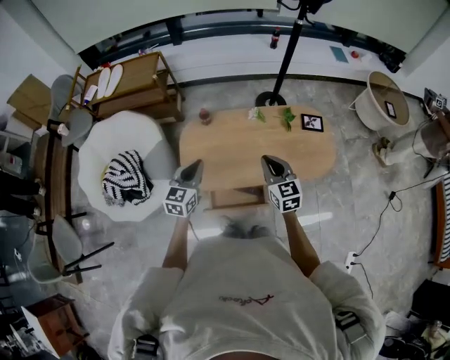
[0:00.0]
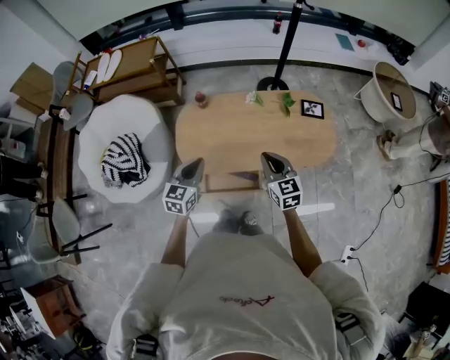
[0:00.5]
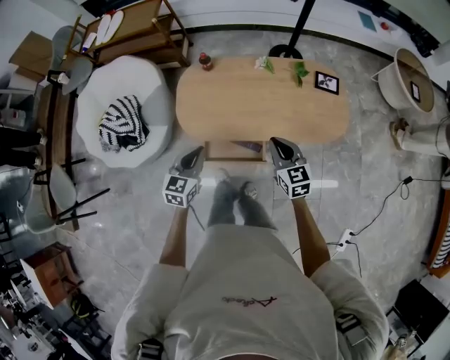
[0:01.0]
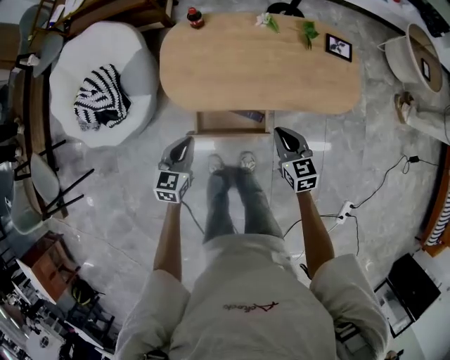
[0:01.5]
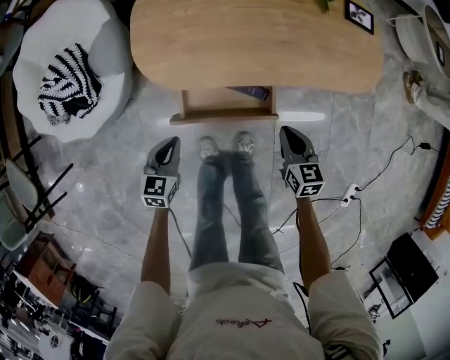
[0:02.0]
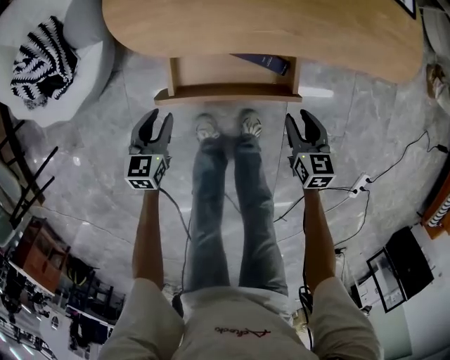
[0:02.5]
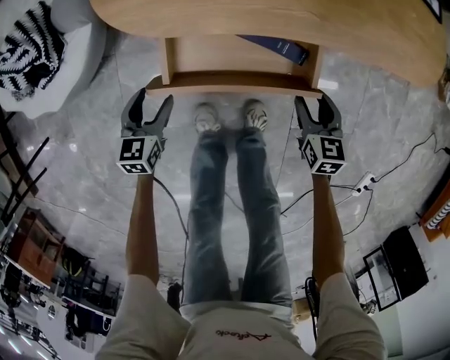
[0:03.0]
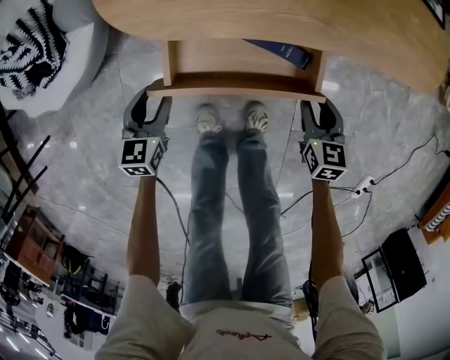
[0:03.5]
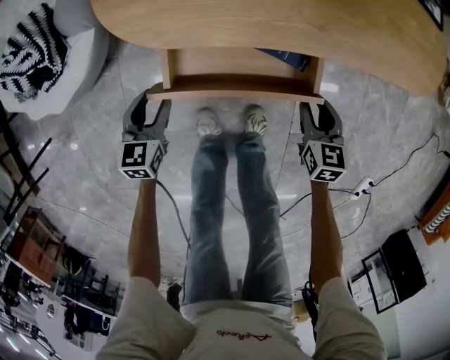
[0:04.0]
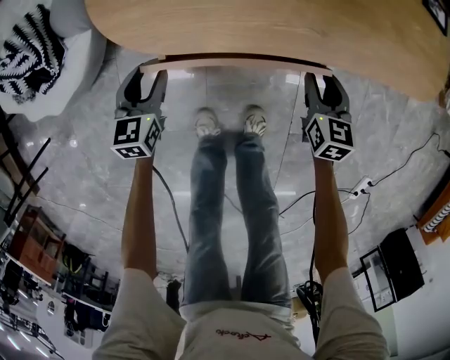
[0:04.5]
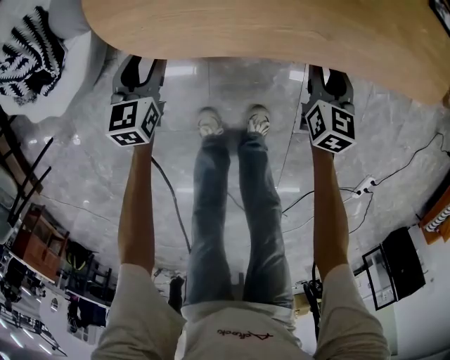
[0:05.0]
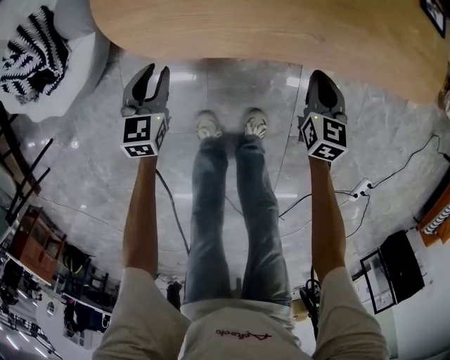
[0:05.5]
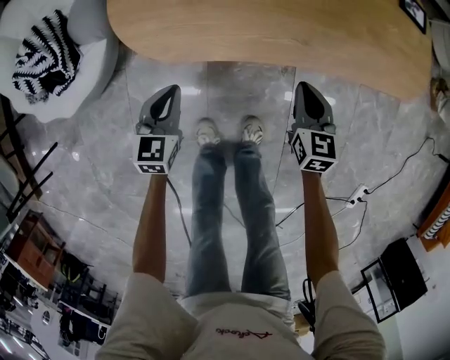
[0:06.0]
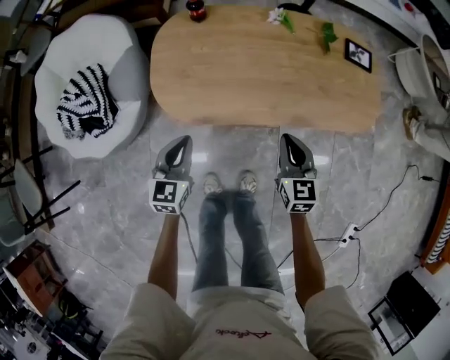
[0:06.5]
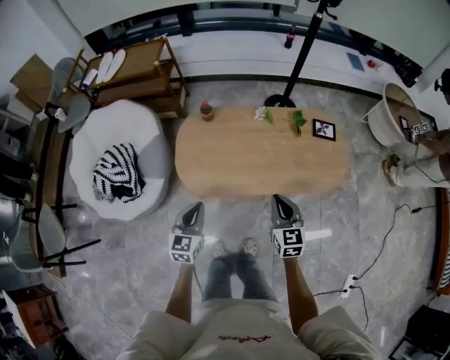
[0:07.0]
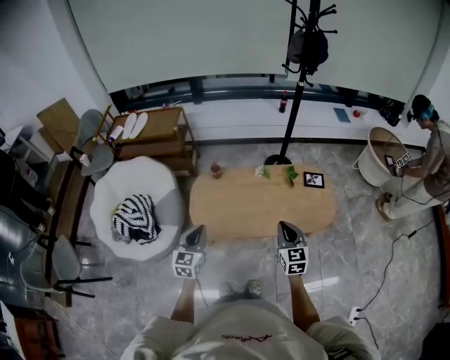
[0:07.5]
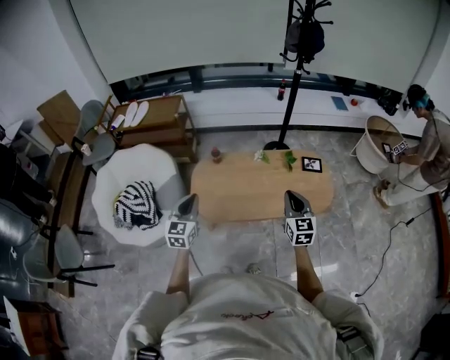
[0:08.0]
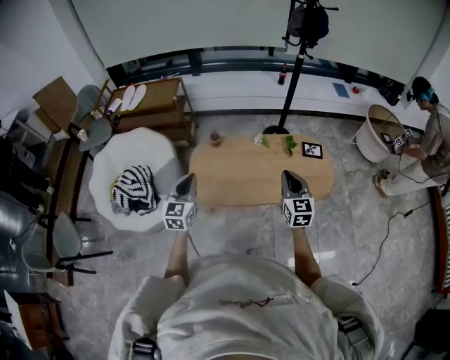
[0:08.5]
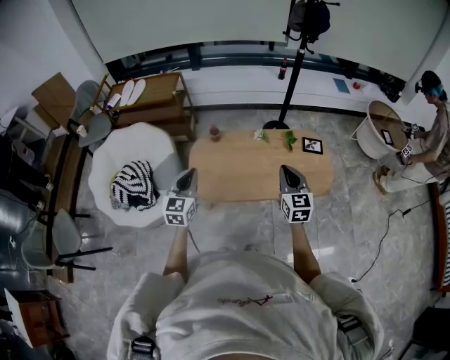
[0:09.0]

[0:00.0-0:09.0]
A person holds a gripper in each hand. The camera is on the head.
0:00.0 to 0:02.0: The right gripper shifts roughly 40 cm downward, and swivels some 20 degrees. Meanwhile the left gripper heads downward and backward, covering approximately 50 cm, and turns by approximately 20 degrees.
0:02.0 to 0:04.5: Both grippers travel together downward and forward, roughly 25 cm. The left gripper opens its fingers; the right gripper opens up.
0:04.5 to 0:07.0: Both grippers move upward, roughly 50 cm. The right gripper rotates some 20 degrees, and closes its fingers; the left gripper closes up.
0:07.0 to 0:09.0: Both grippers move upward, about 20 cm.

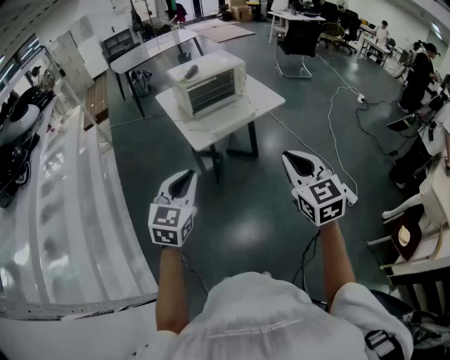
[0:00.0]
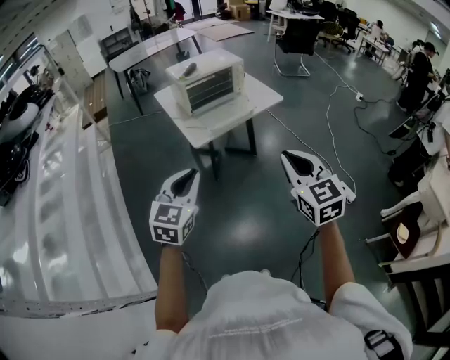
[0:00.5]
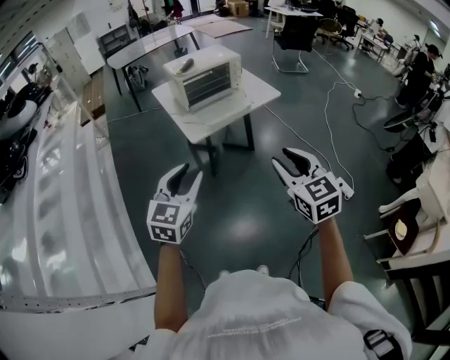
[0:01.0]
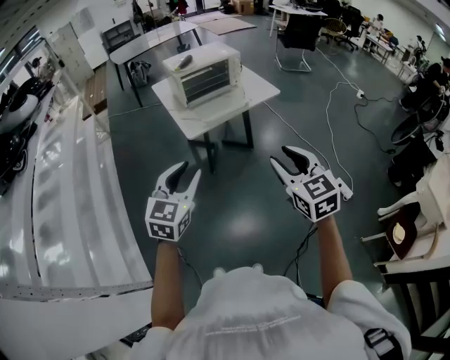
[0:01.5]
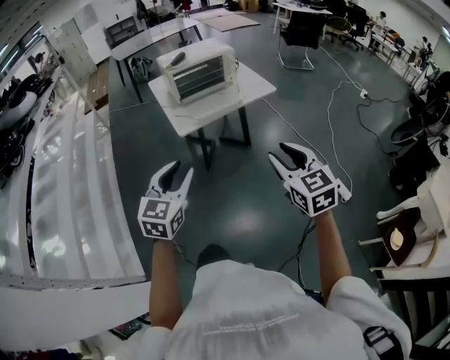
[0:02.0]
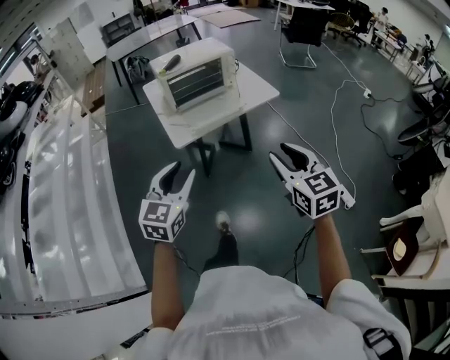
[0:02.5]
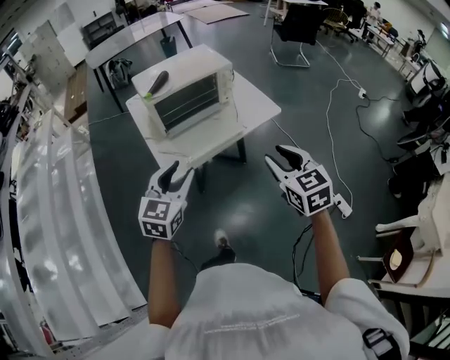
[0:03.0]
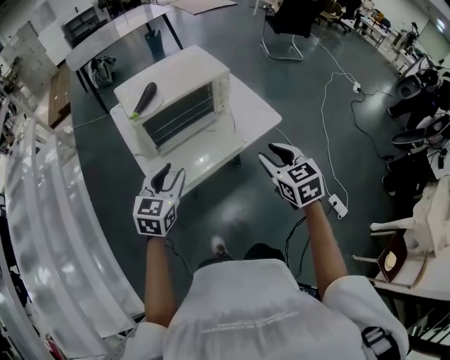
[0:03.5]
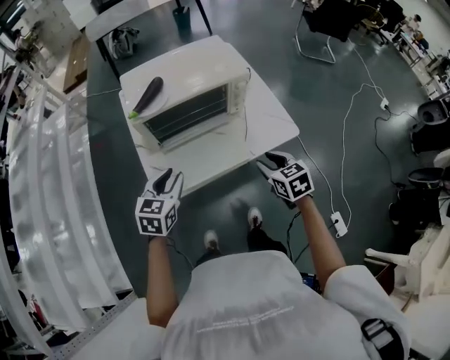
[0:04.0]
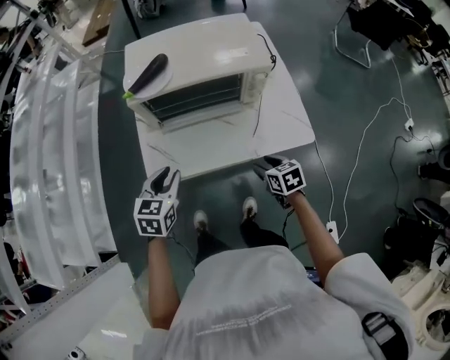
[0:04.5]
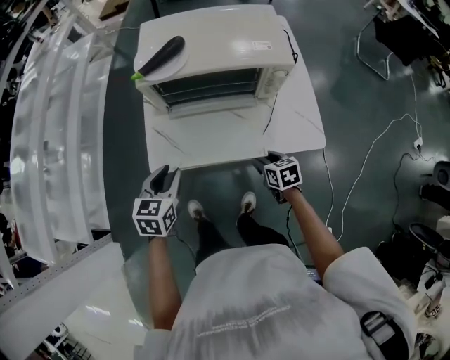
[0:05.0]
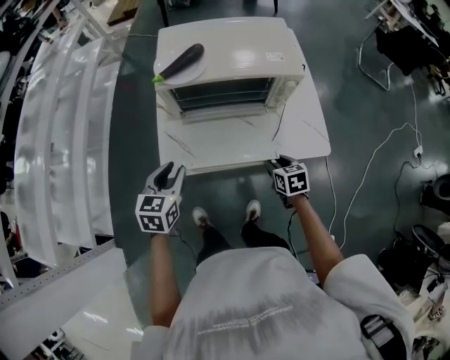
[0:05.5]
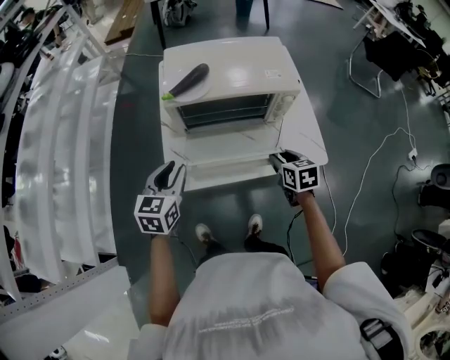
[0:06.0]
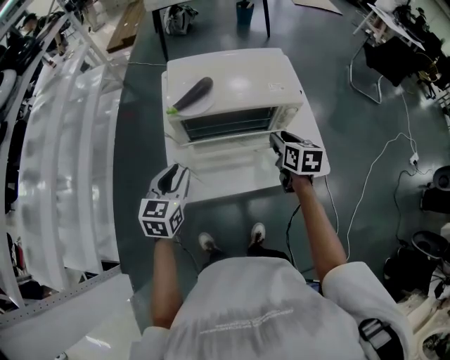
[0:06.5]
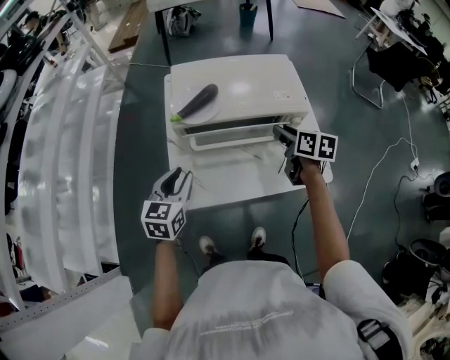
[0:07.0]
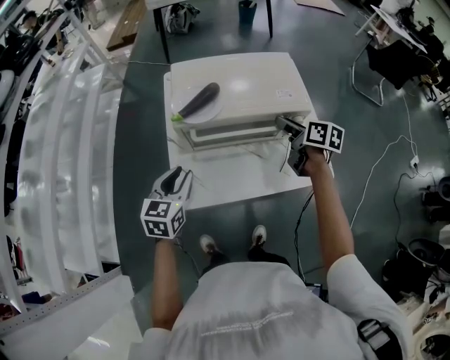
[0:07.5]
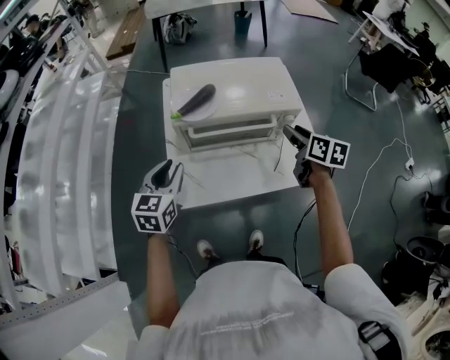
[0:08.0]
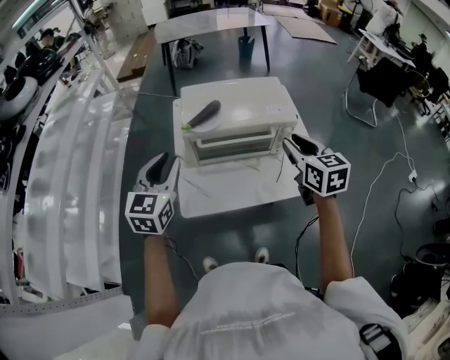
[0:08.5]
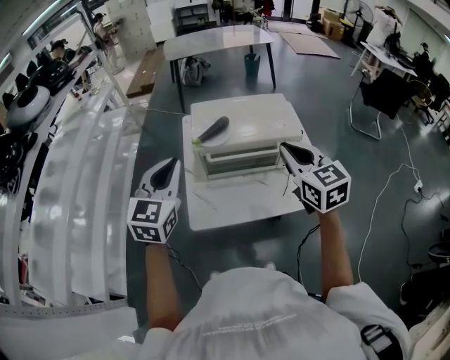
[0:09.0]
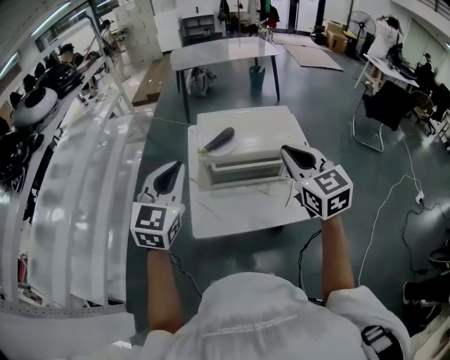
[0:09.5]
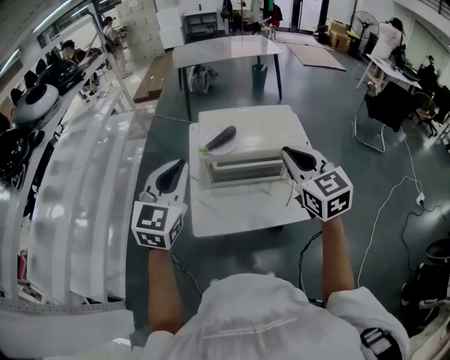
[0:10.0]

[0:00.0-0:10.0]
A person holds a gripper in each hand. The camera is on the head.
0:00.0 to 0:02.0: The grippers both shift to the right by roughly 10 cm. The right gripper opens its fingers, while the left gripper opens up.
0:02.0 to 0:04.0: The two grippers travel together, forward, some 50 cm. The right gripper changes its angle by about 30 degrees, while the left gripper swivels roughly 20 degrees.
0:04.0 to 0:06.0: The right gripper is displaced forward by some 10 cm, and travels downward and back again, some 15 cm each way, while the left gripper changes place by some 5 cm.
0:06.0 to 0:08.0: The right gripper goes some 15 cm upward and forward, and turns by about 20 degrees; the left gripper ends up about 5 cm from where it was.
0:08.0 to 0:10.0: The right gripper moves upward, to the left and backward, roughly 25 cm, rotates around the line of its fingers by approximately 40 degrees, counterclockwise from behind, and closes up; the left gripper travels upward by roughly 20 cm, changes its angle by some 30 degrees, and closes up.

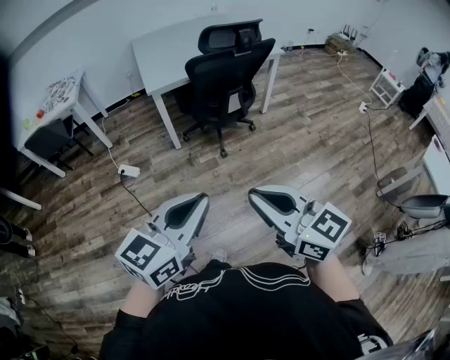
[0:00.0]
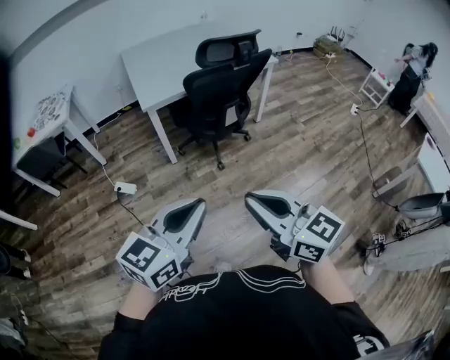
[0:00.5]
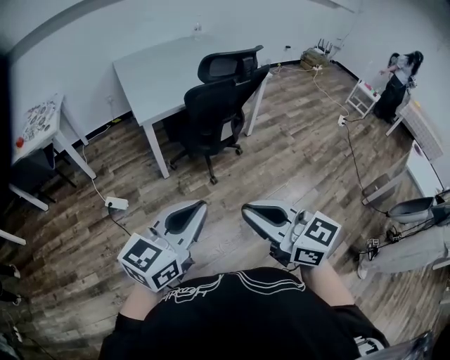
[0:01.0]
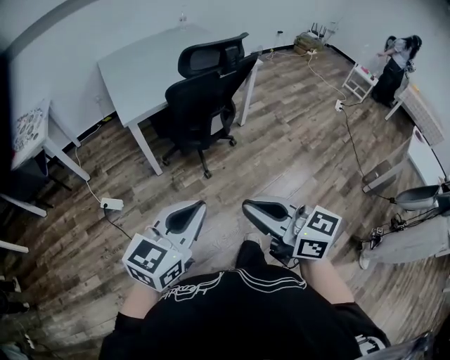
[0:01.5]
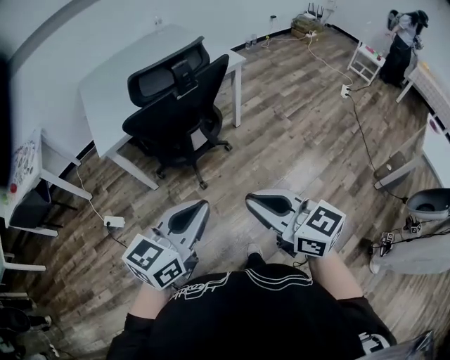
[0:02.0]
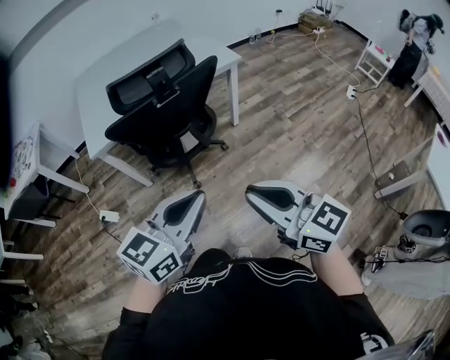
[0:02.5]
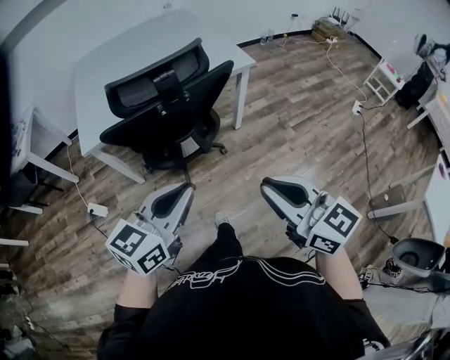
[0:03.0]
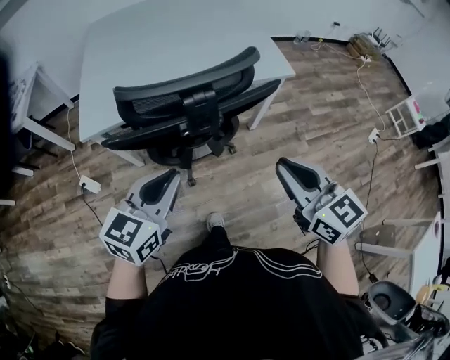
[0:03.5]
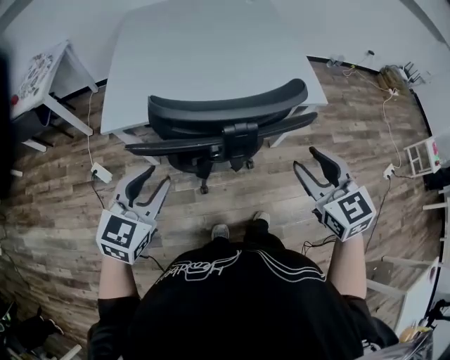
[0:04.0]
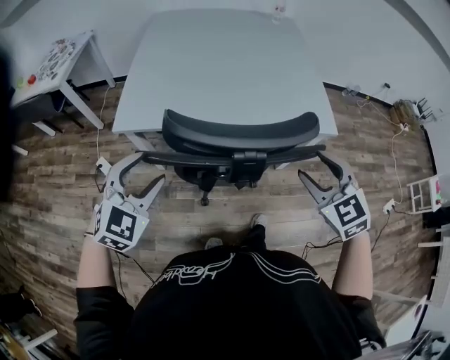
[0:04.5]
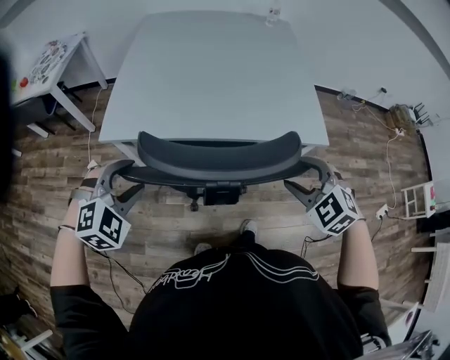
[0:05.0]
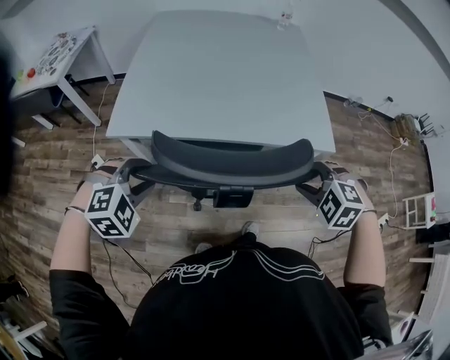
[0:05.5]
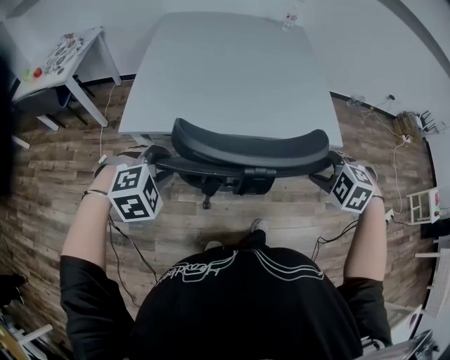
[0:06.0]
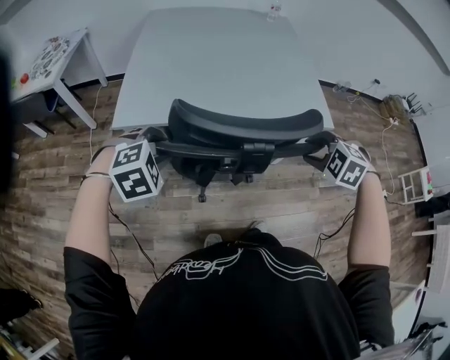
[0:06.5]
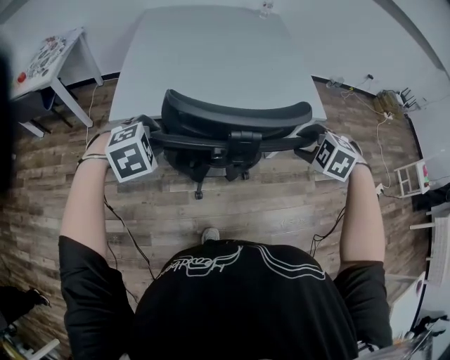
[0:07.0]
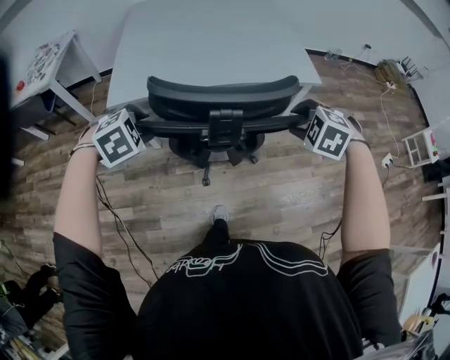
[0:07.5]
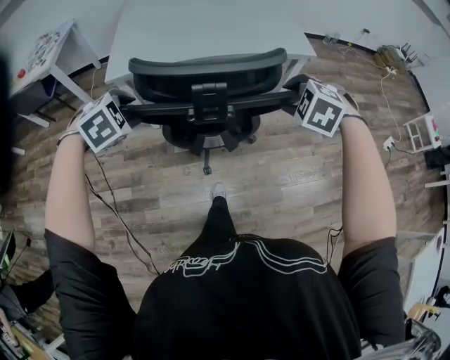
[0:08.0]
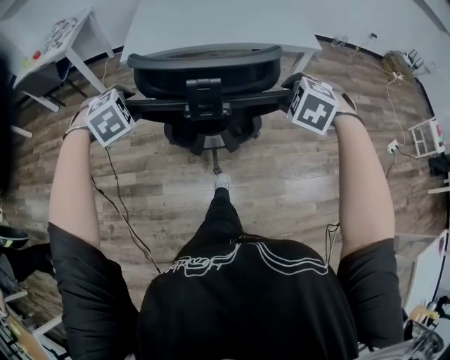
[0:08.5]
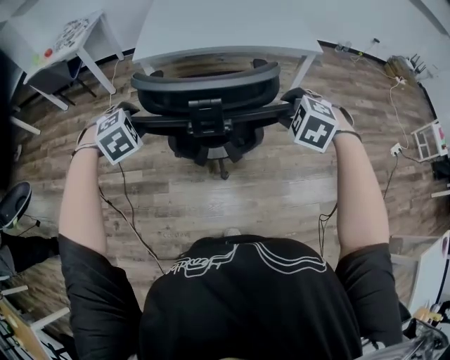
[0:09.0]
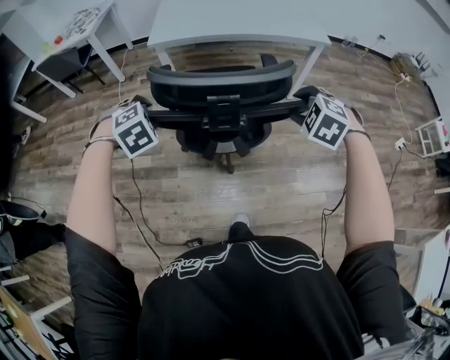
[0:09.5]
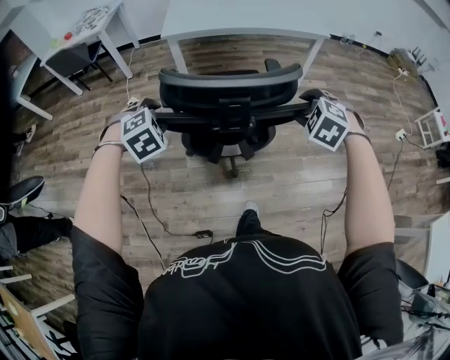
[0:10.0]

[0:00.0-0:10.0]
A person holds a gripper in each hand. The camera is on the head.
0:00.0 to 0:02.0: Both grippers travel together forward and to the right, approximately 30 cm.
0:02.0 to 0:04.0: The two grippers go approximately 40 cm forward. The right gripper rotates roughly 30 degrees, and opens up. The left gripper swivels roughly 40 degrees, and opens up.
0:04.0 to 0:06.0: The right gripper is displaced forward and downward by roughly 10 cm, and angles its fingers downward, by some 40 degrees. Meanwhile the left gripper heads forward, covering some 5 cm, and tilts its fingers approximately 40 degrees downward.
0:06.0 to 0:08.0: Both grippers move backward, about 15 cm.
0:08.0 to 0:10.0: Both grippers travel together backward, about 30 cm.
